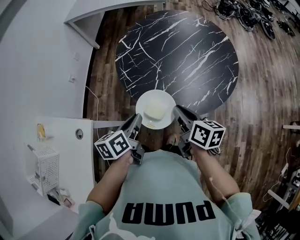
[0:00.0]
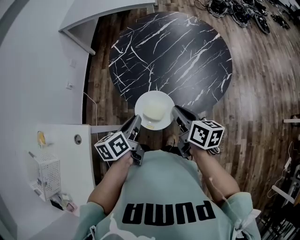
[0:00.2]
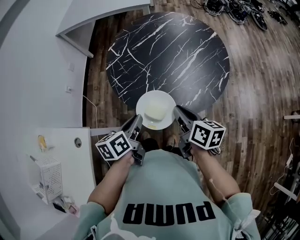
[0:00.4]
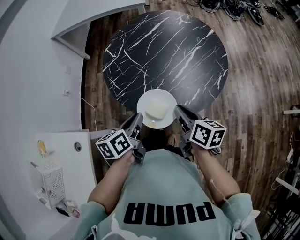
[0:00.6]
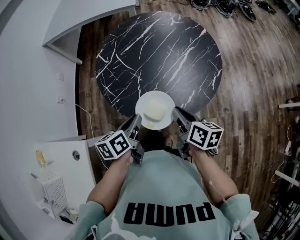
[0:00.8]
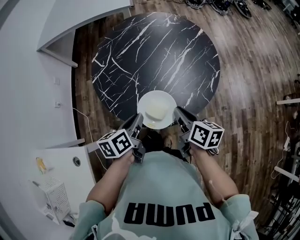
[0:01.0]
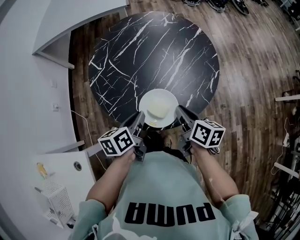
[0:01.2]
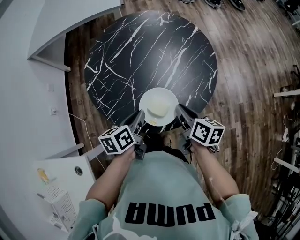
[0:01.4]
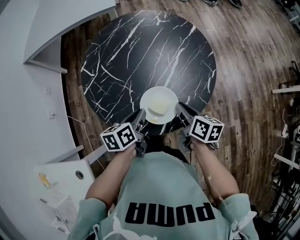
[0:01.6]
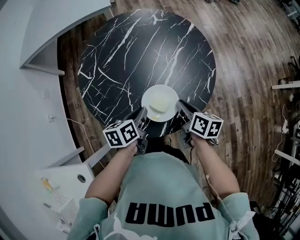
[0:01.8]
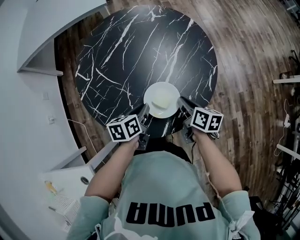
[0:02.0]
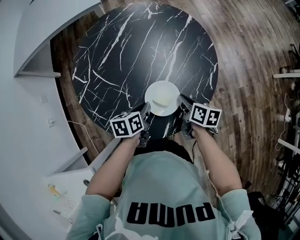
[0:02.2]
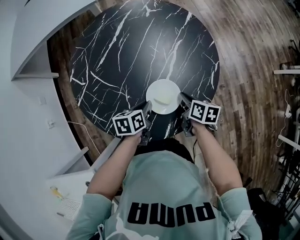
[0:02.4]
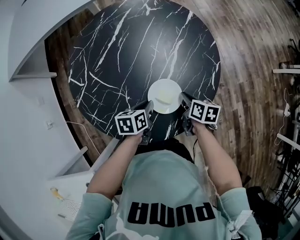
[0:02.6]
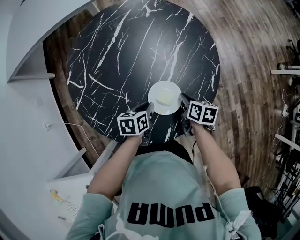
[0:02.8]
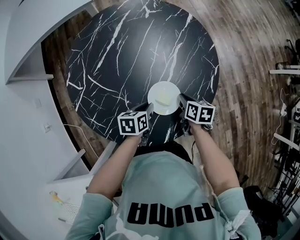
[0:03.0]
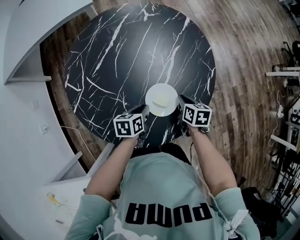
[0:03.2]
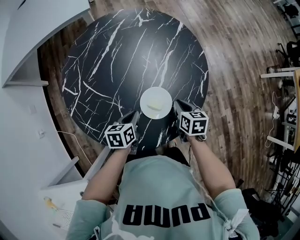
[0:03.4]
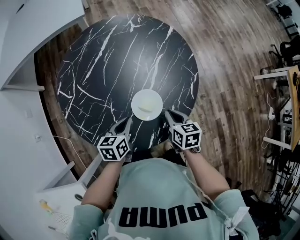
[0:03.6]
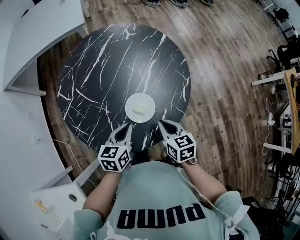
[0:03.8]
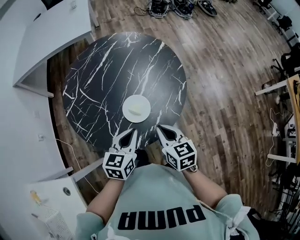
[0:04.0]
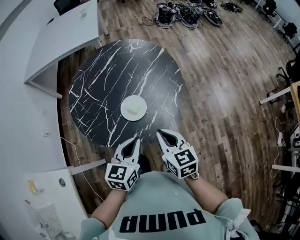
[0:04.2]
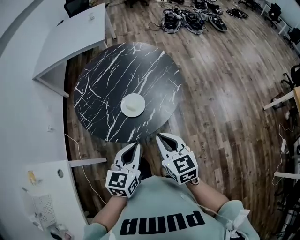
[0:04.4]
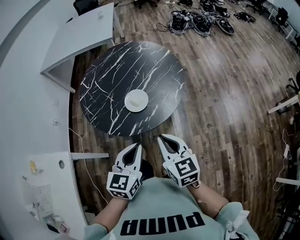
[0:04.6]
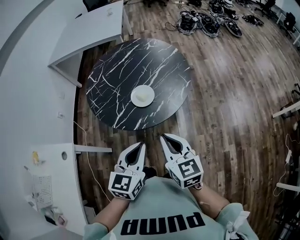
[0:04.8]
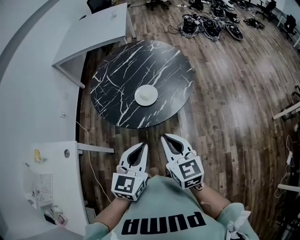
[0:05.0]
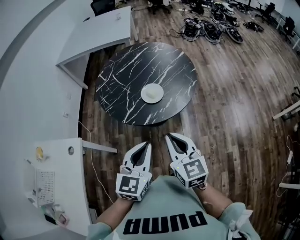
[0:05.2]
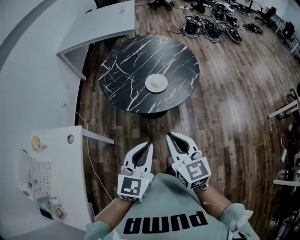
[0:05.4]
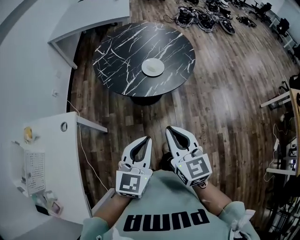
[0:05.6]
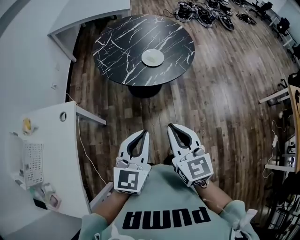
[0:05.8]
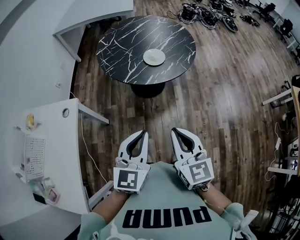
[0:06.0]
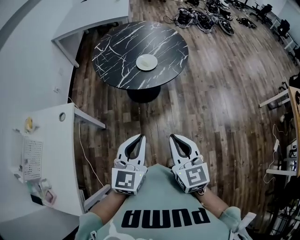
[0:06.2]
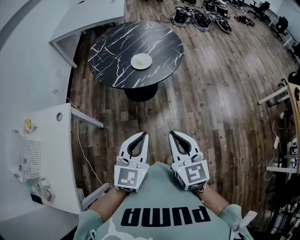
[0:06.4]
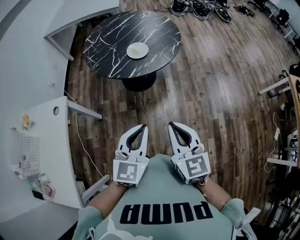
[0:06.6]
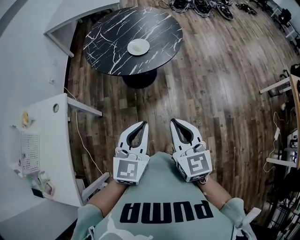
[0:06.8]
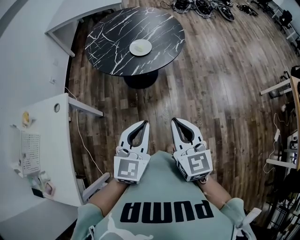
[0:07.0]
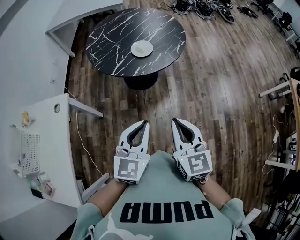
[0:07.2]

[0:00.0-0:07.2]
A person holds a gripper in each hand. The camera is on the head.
0:00.0 to 0:01.4: The right gripper goes approximately 15 cm to the right and forward, while the left gripper is displaced forward and to the right by approximately 15 cm.
0:01.4 to 0:02.8: Both grippers move downward and forward, about 20 cm. The left gripper rotates some 30 degrees.
0:02.8 to 0:04.4: The left gripper goes roughly 35 cm upward, backward and to the right, and swivels roughly 40 degrees. Meanwhile the right gripper is displaced upward and backward by some 30 cm, and twists about 40 degrees counterclockwise, seen from behind.
0:04.4 to 0:05.8: Both grippers move backward and to the left, about 30 cm.
0:05.8 to 0:07.2: Both grippers travel together to the right, roughly 10 cm.

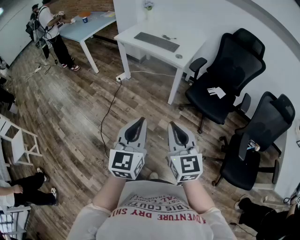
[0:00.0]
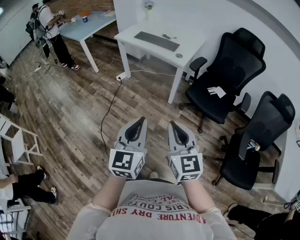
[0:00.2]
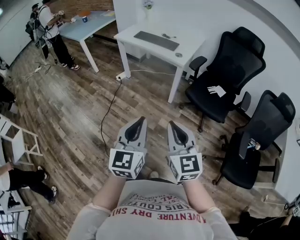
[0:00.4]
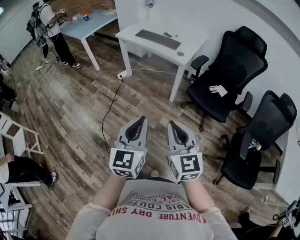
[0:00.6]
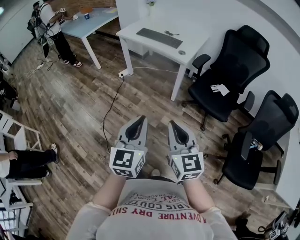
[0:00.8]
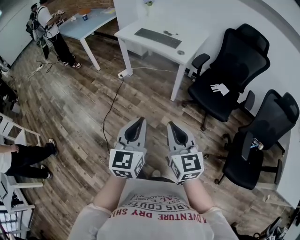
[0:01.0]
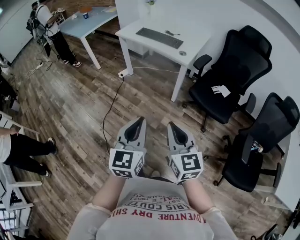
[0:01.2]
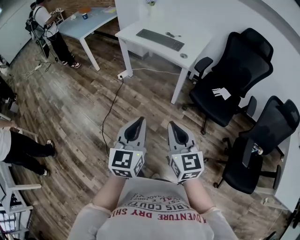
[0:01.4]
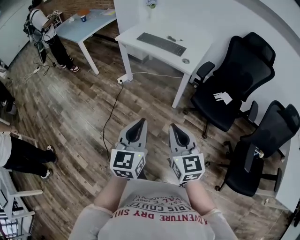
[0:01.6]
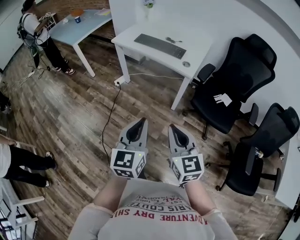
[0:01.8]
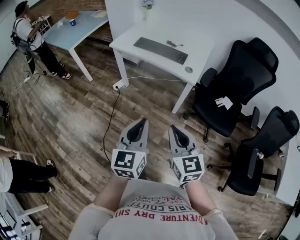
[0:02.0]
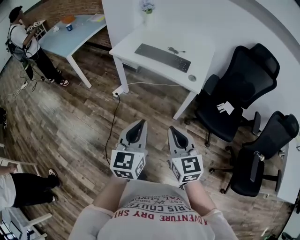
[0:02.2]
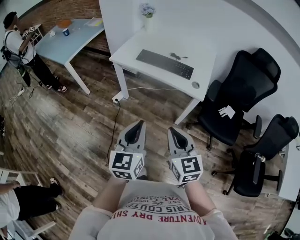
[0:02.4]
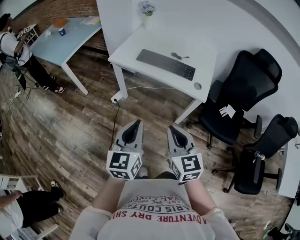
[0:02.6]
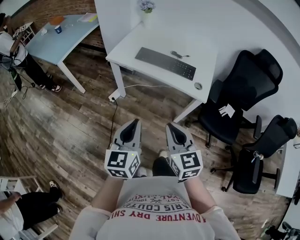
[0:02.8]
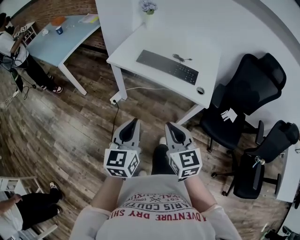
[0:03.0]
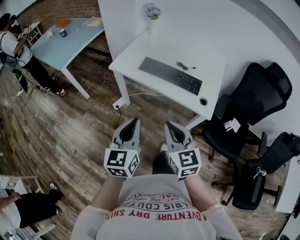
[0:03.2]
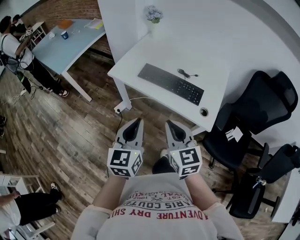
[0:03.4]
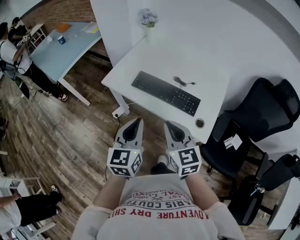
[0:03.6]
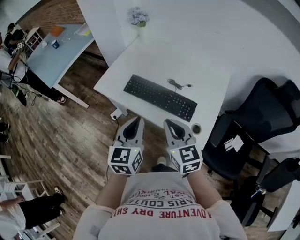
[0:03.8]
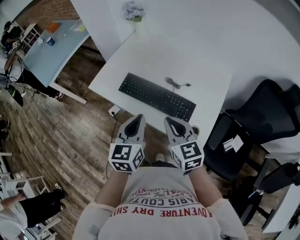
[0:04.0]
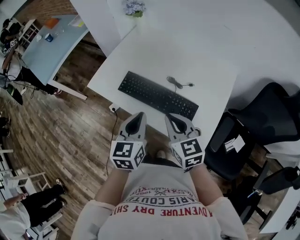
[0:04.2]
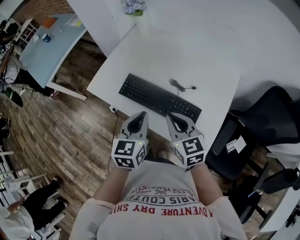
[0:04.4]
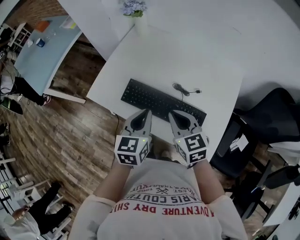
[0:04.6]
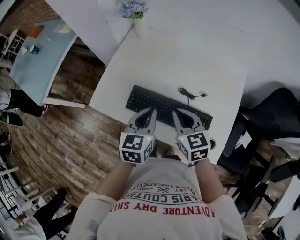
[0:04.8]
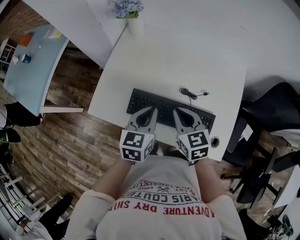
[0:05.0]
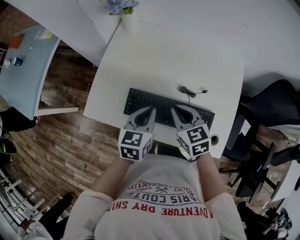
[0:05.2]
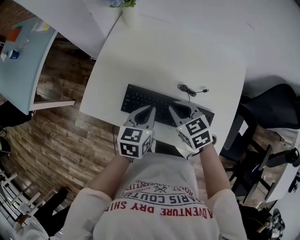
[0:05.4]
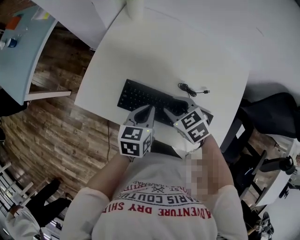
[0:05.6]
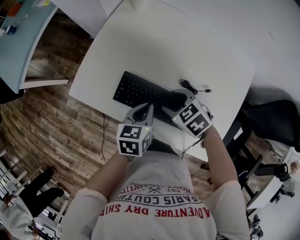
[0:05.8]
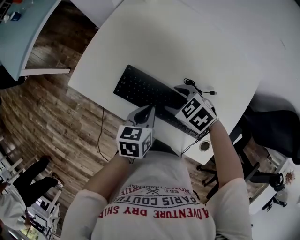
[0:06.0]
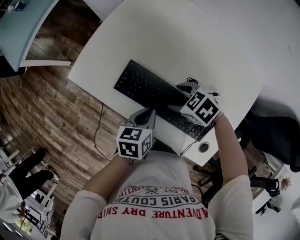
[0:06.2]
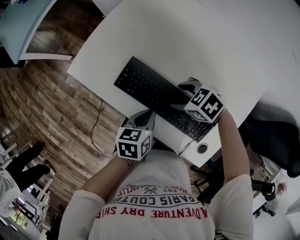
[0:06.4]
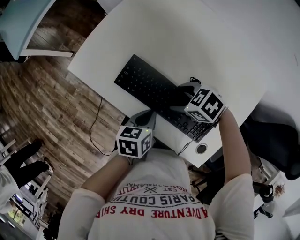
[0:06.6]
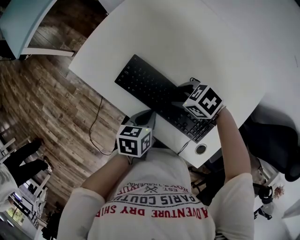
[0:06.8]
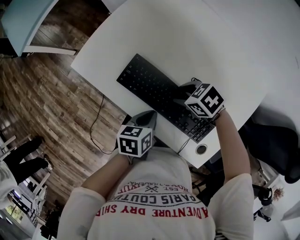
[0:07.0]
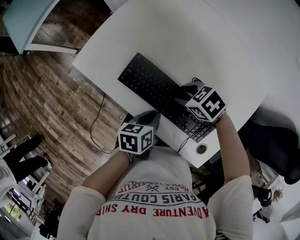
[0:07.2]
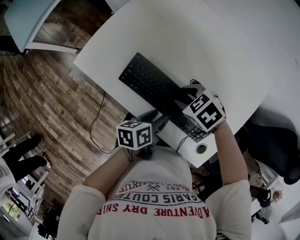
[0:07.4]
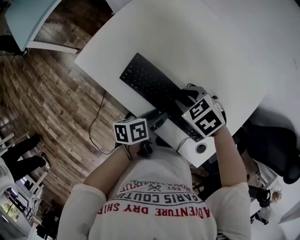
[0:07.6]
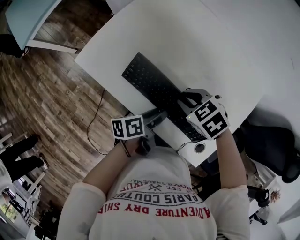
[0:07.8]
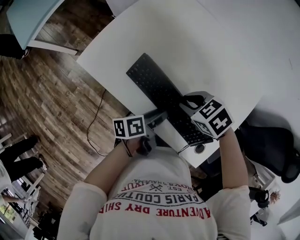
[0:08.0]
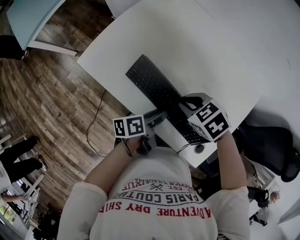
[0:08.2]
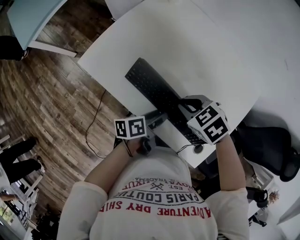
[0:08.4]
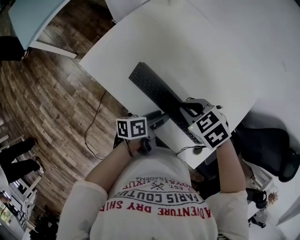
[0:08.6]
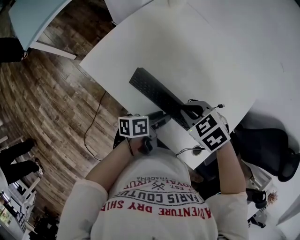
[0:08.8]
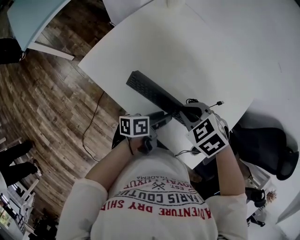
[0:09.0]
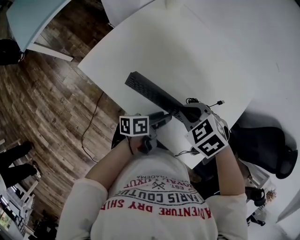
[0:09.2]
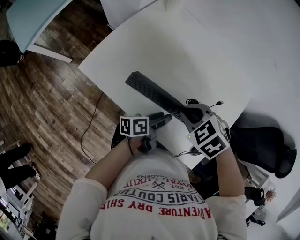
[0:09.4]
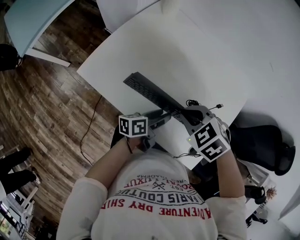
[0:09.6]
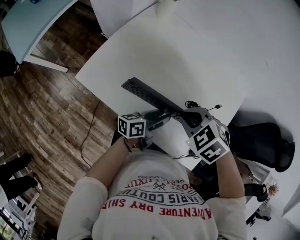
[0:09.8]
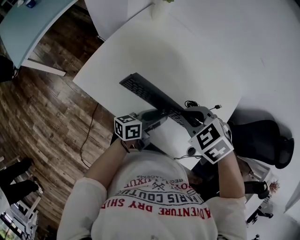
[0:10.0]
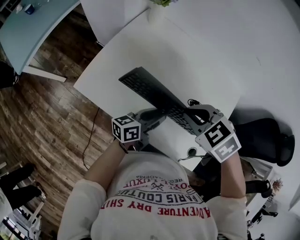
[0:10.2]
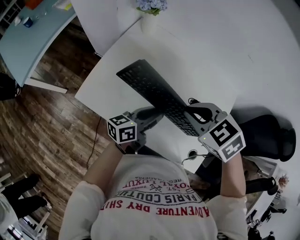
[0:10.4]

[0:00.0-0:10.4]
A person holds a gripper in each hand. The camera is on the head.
0:00.0 to 0:01.4: Both grippers travel together forward, approximately 5 cm.
0:01.4 to 0:03.0: The two grippers travel together, forward and to the left, some 40 cm.
0:03.0 to 0:04.4: The pair of grippers is taken forward and to the right, roughly 40 cm.
0:04.4 to 0:06.0: Both grippers travel together downward, roughly 15 cm. The left gripper changes its angle by some 30 degrees; the right gripper tips its fingers downward by roughly 40 degrees, and opens up.
0:06.0 to 0:07.4: The right gripper closes its fingers. The left gripper moves about 5 cm, rotates some 30 degrees, and opens its fingers.
0:07.4 to 0:09.0: The left gripper rotates some 20 degrees. Meanwhile the right gripper heads upward, covering approximately 10 cm, and closes.
0:09.0 to 0:10.4: The right gripper shifts some 15 cm upward. The left gripper goes about 15 cm upward and forward, changes its angle by approximately 40 degrees, and closes its fingers.

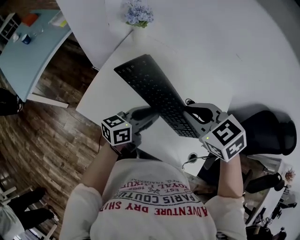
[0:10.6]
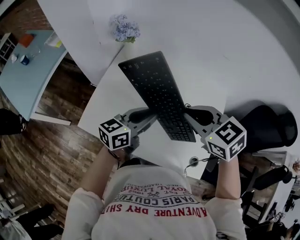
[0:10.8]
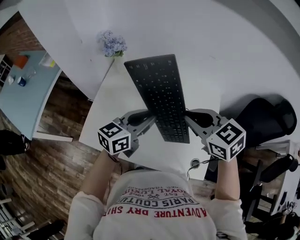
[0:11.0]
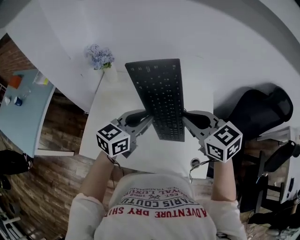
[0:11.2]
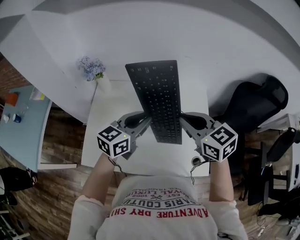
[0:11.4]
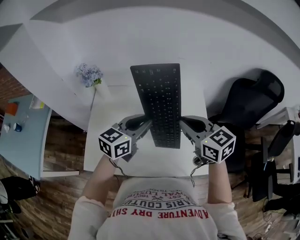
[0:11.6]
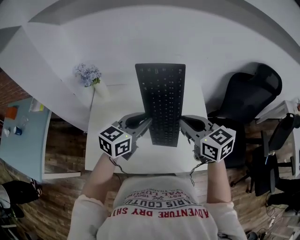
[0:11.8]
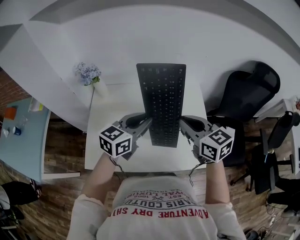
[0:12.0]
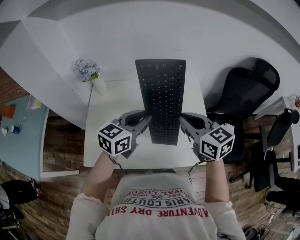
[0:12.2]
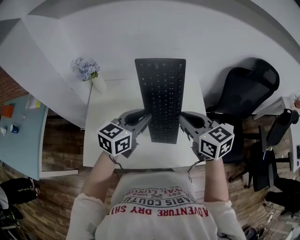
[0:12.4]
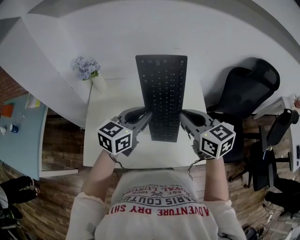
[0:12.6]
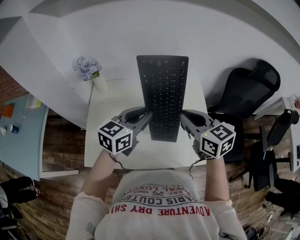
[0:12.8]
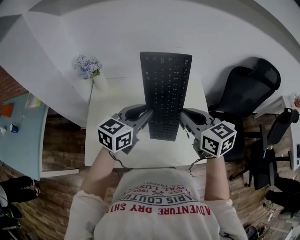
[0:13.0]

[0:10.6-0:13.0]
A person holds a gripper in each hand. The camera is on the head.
0:10.6 to 0:11.8: The right gripper moves about 10 cm, and turns by approximately 50 degrees; the left gripper travels upward by about 10 cm, and changes its angle by roughly 40 degrees.
0:11.8 to 0:13.0: Both grippers stay put.

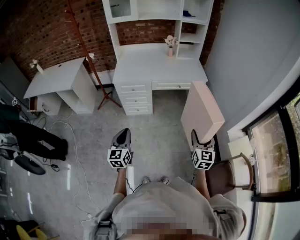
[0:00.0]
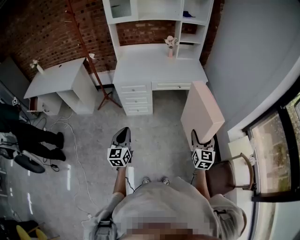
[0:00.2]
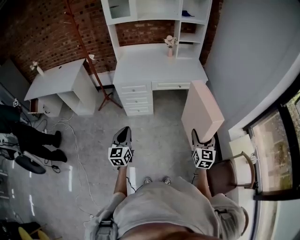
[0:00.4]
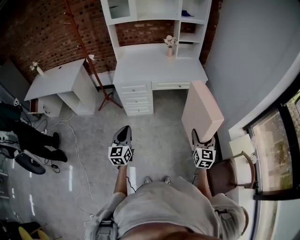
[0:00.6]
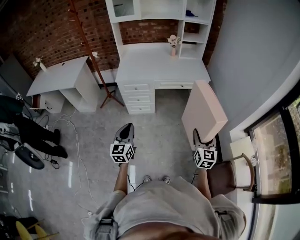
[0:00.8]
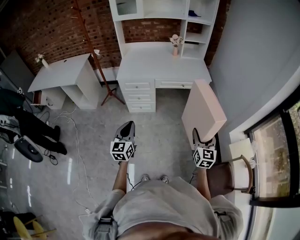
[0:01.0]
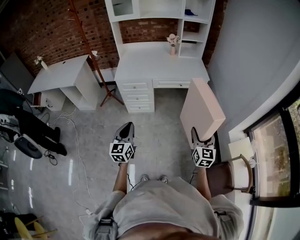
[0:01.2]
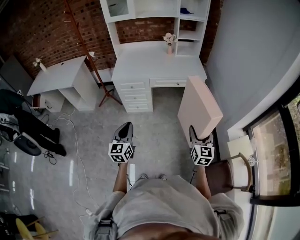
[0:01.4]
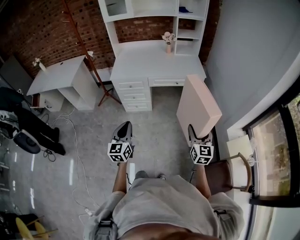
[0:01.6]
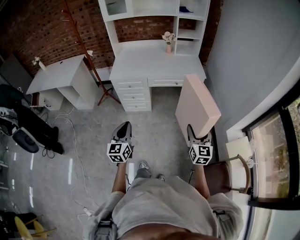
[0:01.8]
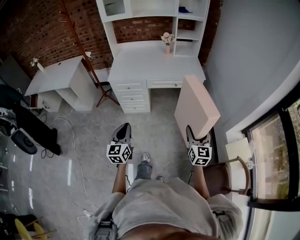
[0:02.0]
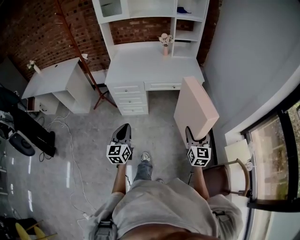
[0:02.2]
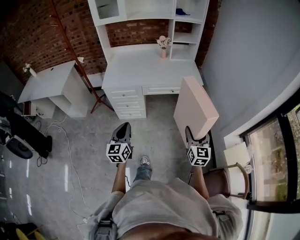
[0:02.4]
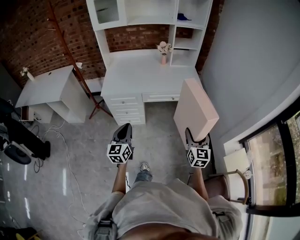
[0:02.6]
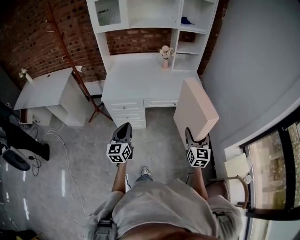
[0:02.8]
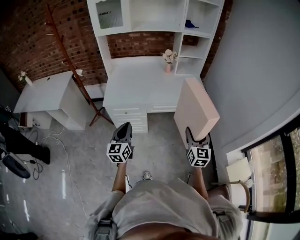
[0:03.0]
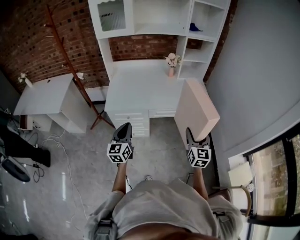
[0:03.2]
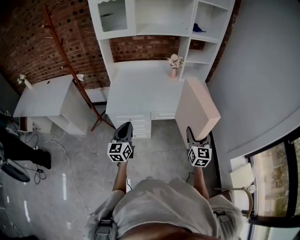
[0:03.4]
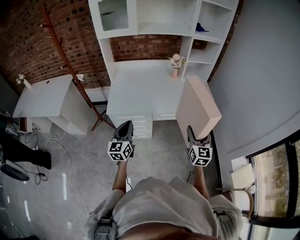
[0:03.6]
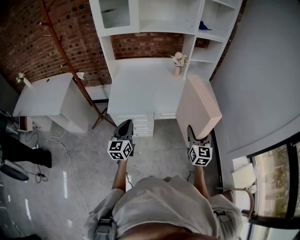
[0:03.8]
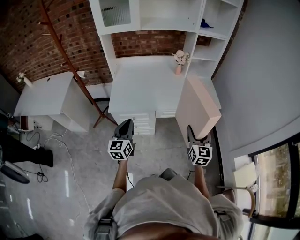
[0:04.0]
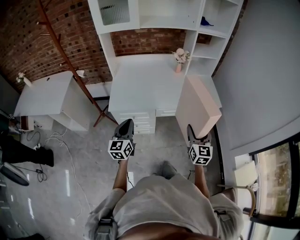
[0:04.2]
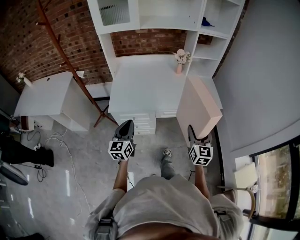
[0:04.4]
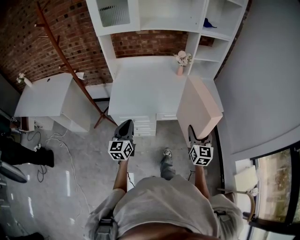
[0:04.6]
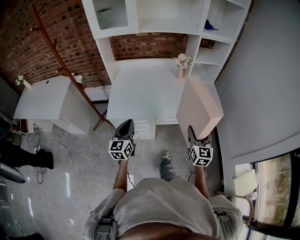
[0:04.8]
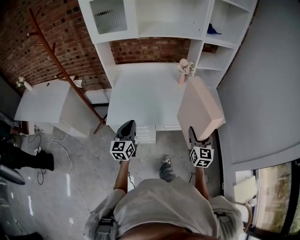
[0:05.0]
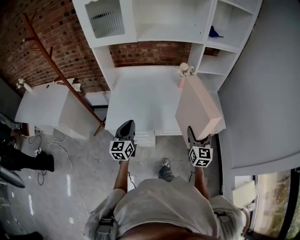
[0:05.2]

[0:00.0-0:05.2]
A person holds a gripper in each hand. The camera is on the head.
0:00.0 to 0:01.8: The left gripper moves to the right, some 10 cm; the right gripper ends up approximately 5 cm from where it was.
0:01.8 to 0:03.4: Both grippers travel together forward, about 35 cm.
0:03.4 to 0:05.2: The grippers both shift forward by roughly 20 cm.
